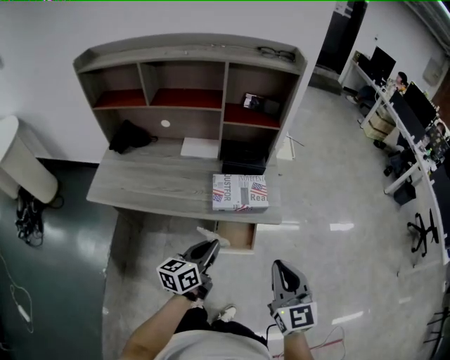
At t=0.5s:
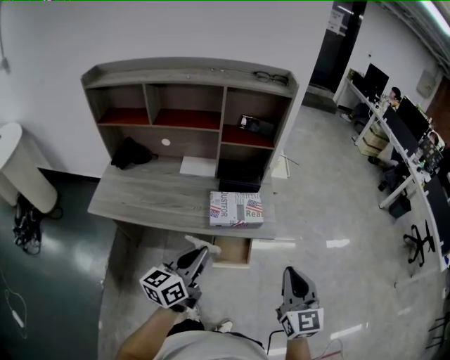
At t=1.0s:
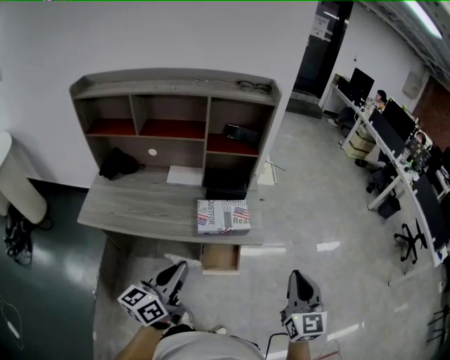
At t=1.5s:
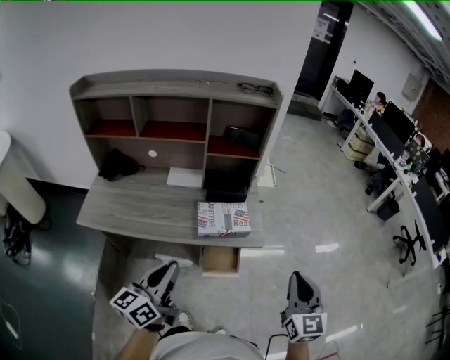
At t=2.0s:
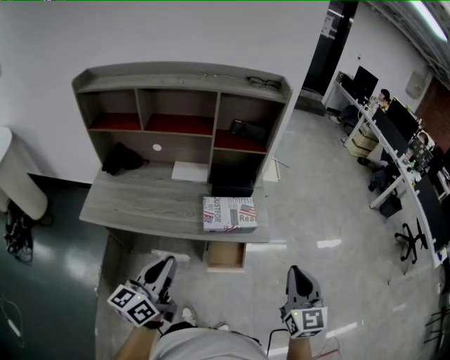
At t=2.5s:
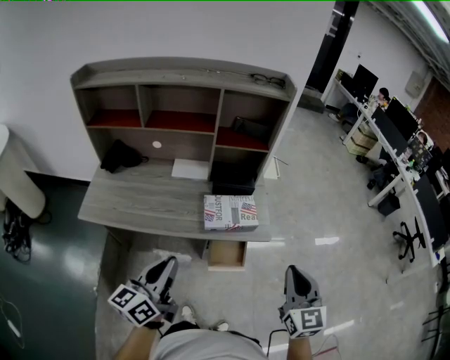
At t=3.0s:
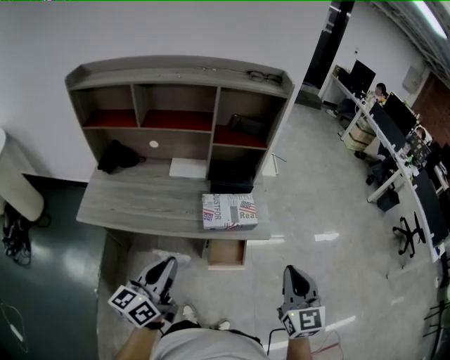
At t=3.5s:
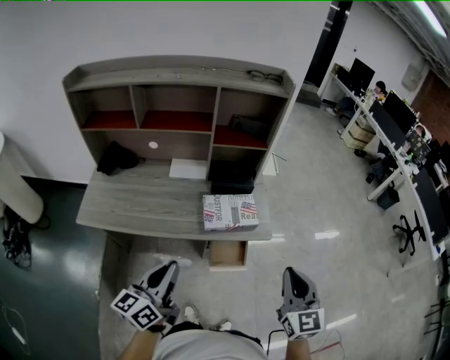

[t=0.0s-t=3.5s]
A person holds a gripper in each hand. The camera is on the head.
t=0.0s to t=2.0s: The right gripper shifts some 5 cm to the right; the left gripper moves upward, to the left and backward, roughly 20 cm.
t=2.0s to t=3.5s: There are only small adjustments of the grippers.

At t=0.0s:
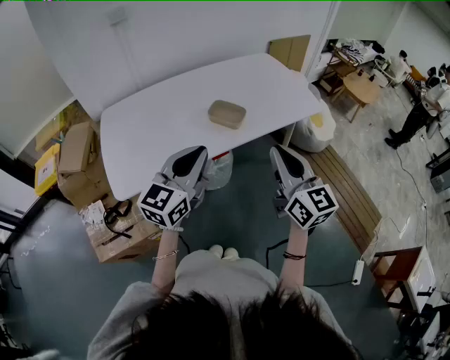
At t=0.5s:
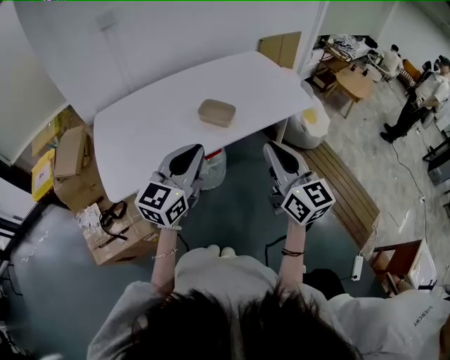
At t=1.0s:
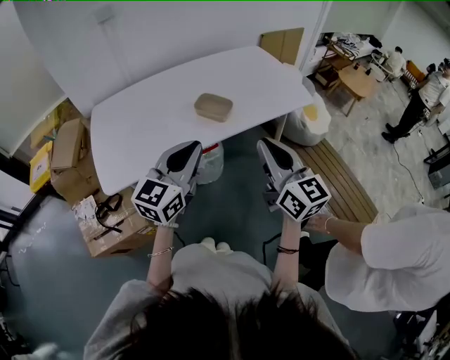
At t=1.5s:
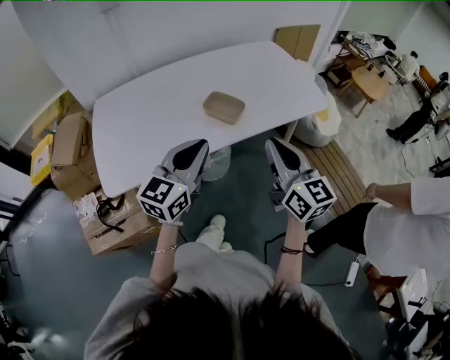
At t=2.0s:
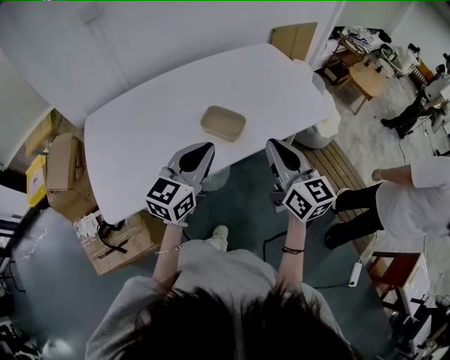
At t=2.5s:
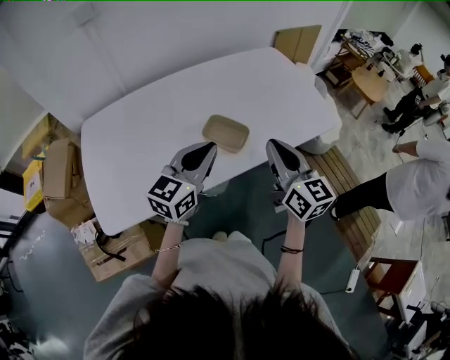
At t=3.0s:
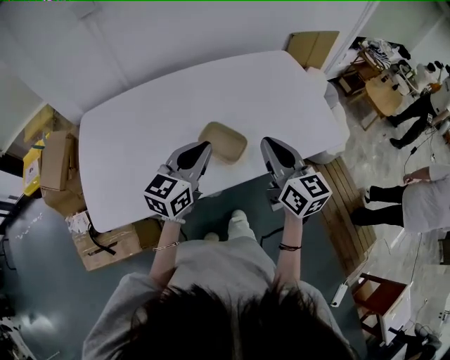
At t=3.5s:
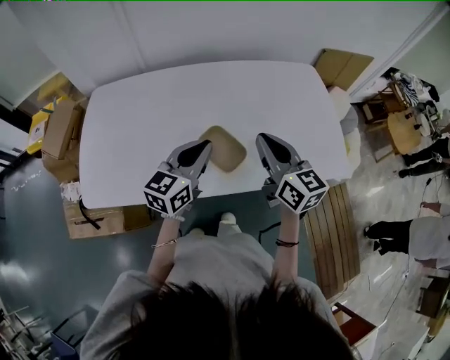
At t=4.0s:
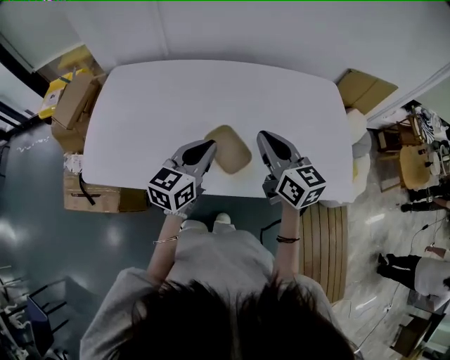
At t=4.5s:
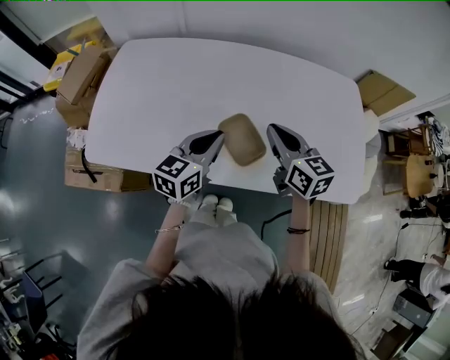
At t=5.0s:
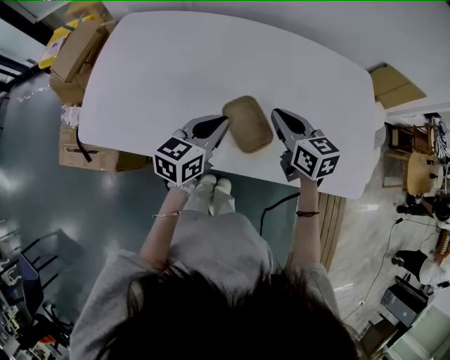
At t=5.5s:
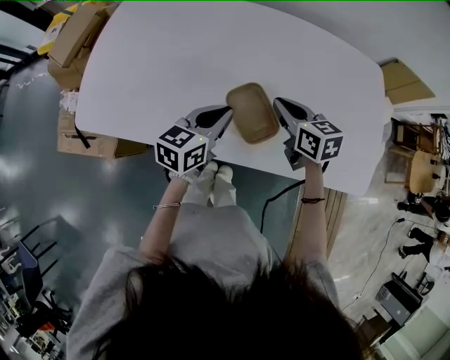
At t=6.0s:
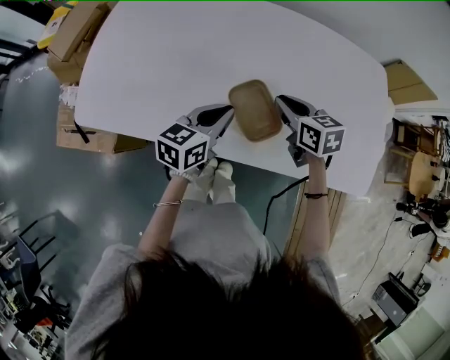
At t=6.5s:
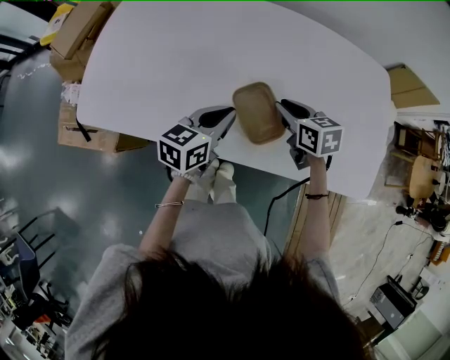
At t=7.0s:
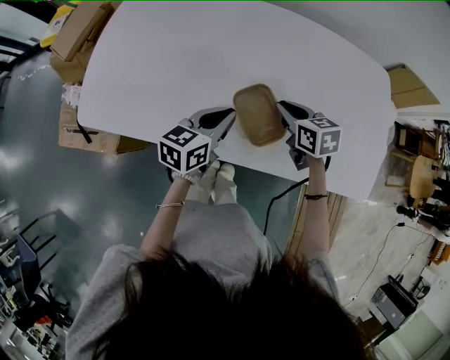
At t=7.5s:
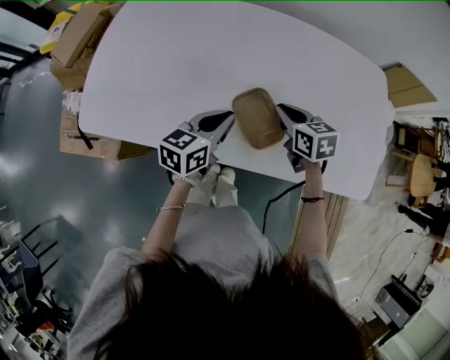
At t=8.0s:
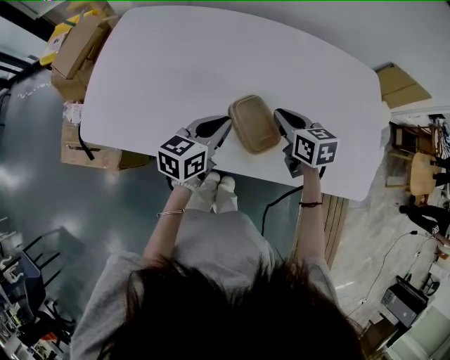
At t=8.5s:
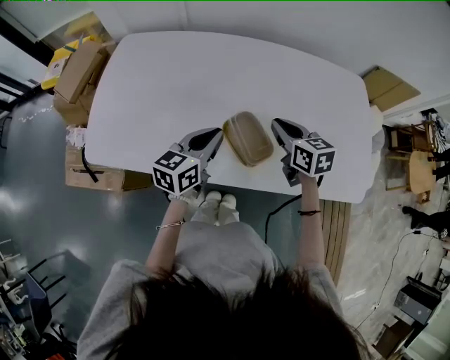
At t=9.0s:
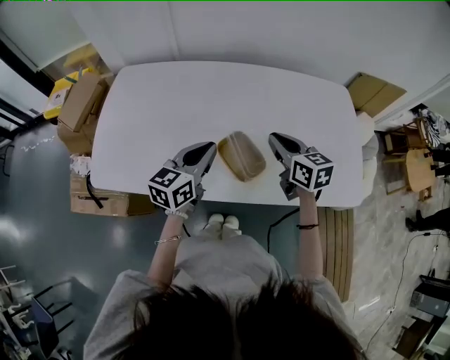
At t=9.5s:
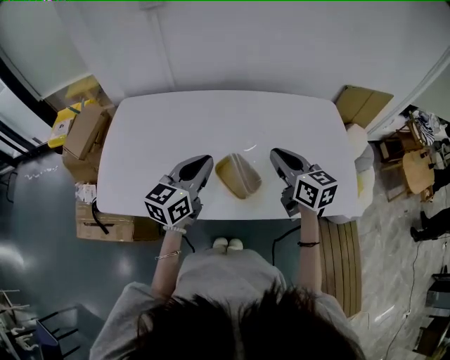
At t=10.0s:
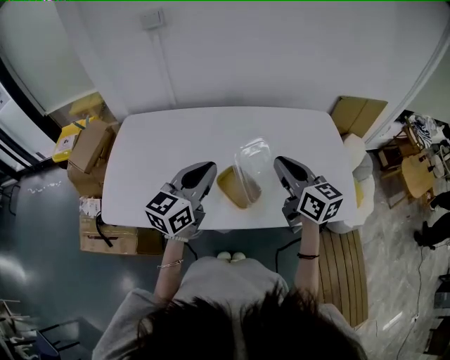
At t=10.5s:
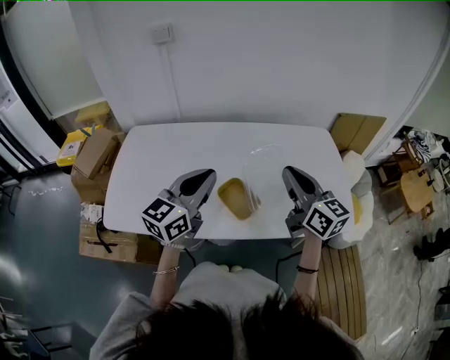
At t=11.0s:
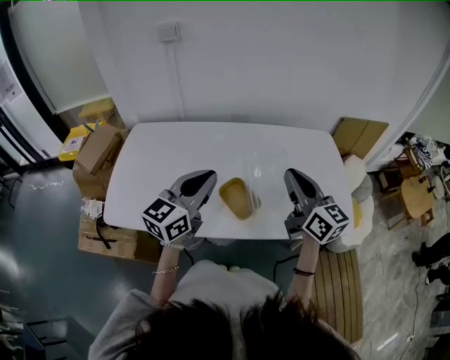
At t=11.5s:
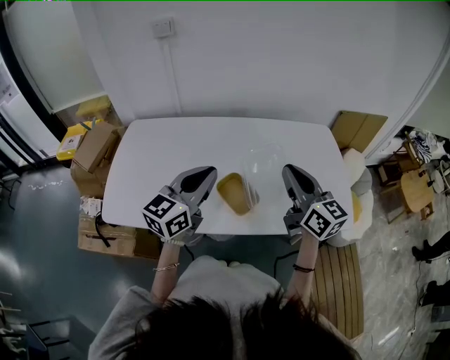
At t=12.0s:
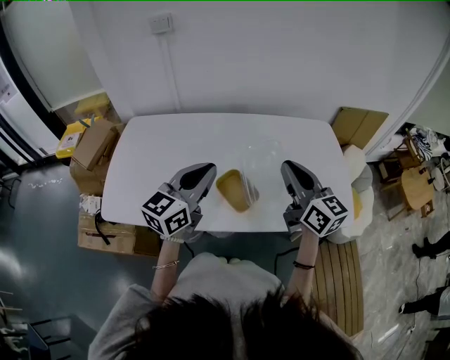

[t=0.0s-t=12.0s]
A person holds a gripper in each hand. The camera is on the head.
t=0.0s to t=2.0s: The two grippers go some 15 cm forward.
t=2.0s to t=4.0s: The left gripper shifts by some 20 cm, and rotates some 30 degrees. The right gripper moves approximately 25 cm, and turns by approximately 30 degrees.
t=4.0s to t=6.0s: The two grippers go approximately 15 cm downward. The right gripper rotates some 30 degrees.
t=6.0s to t=8.0s: The grippers stay close to where they were, moving slightly.
t=8.0s to t=10.0s: The grippers both shift upward by about 20 cm. The right gripper tips its fingers upward by roughly 30 degrees; the left gripper rotates approximately 30 degrees.
t=10.0s to t=12.0s: The grippers make only small movements.

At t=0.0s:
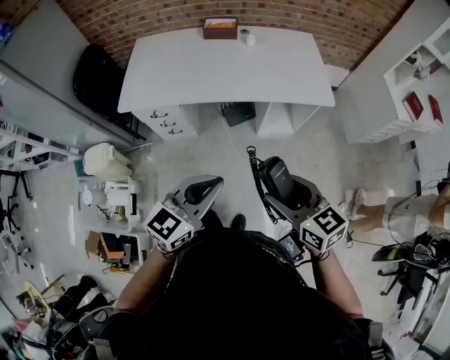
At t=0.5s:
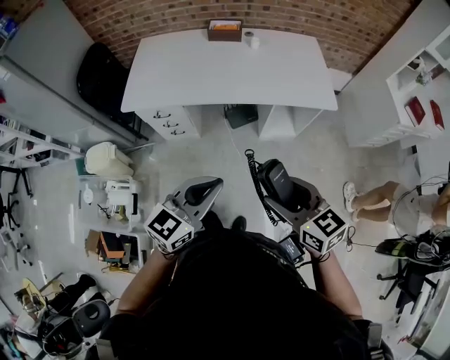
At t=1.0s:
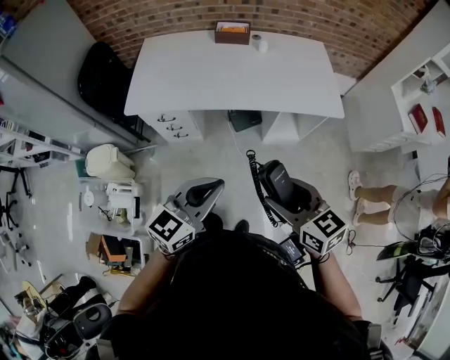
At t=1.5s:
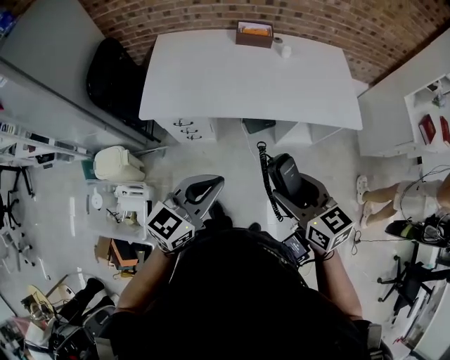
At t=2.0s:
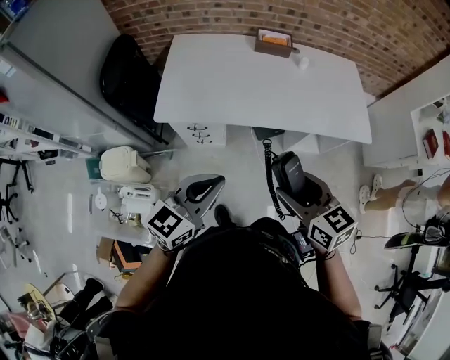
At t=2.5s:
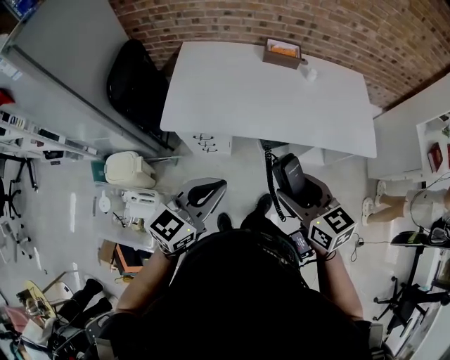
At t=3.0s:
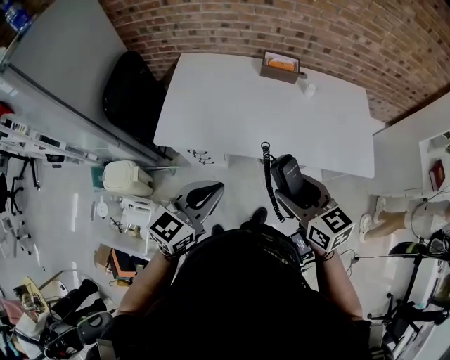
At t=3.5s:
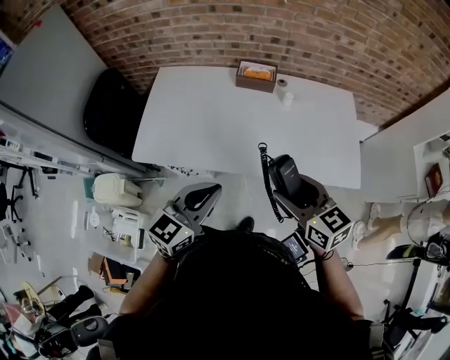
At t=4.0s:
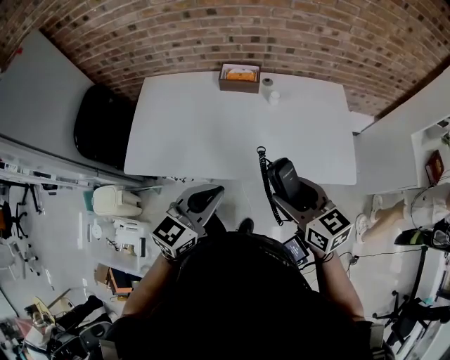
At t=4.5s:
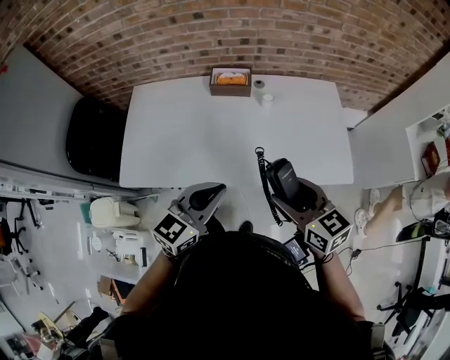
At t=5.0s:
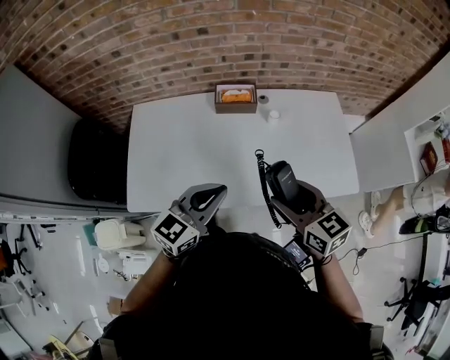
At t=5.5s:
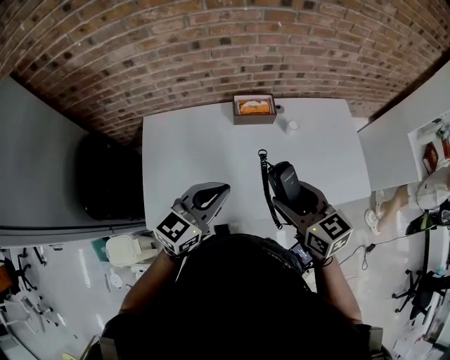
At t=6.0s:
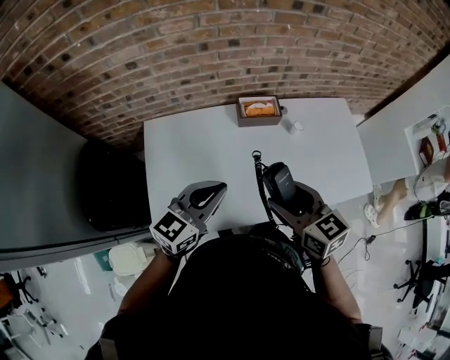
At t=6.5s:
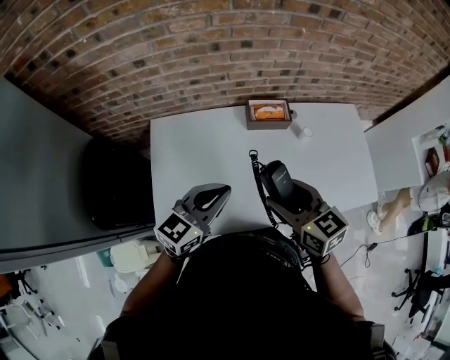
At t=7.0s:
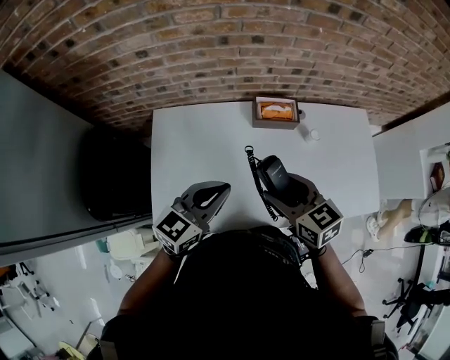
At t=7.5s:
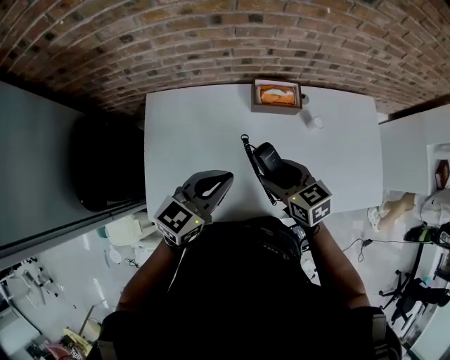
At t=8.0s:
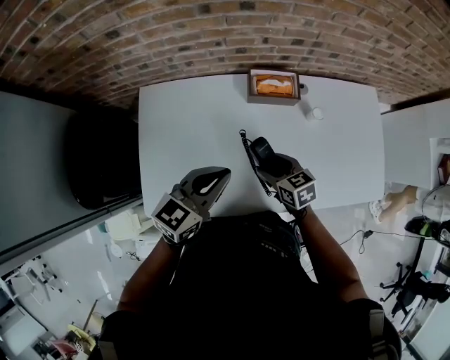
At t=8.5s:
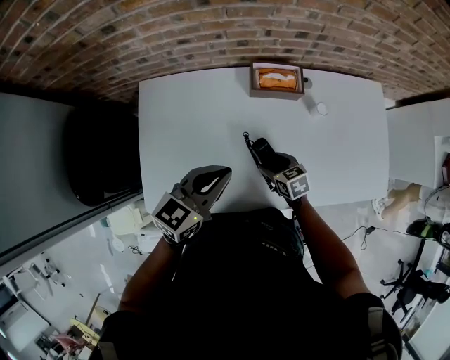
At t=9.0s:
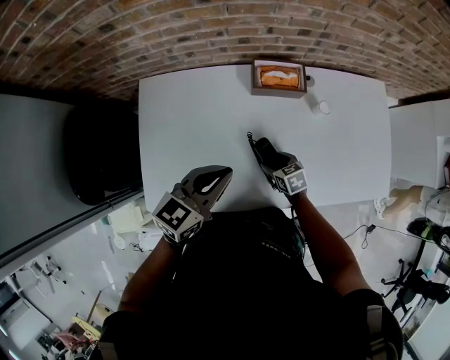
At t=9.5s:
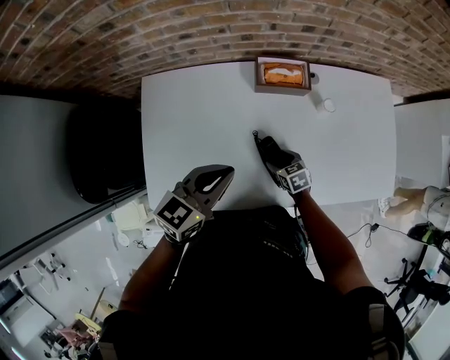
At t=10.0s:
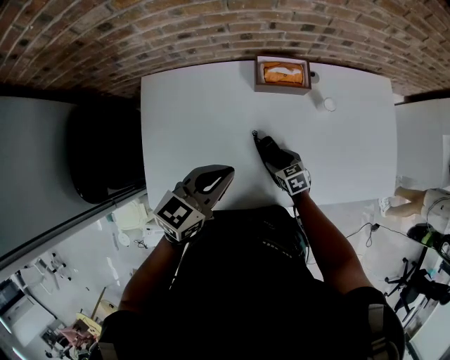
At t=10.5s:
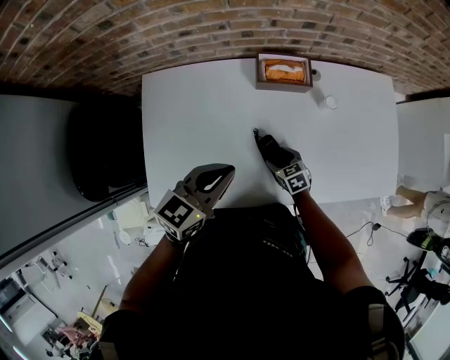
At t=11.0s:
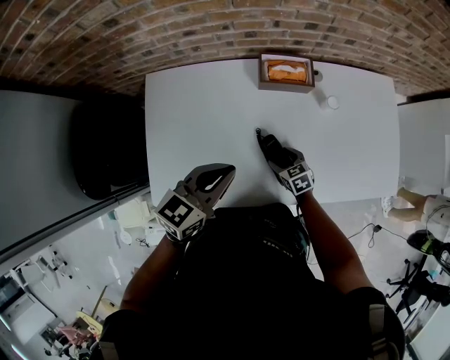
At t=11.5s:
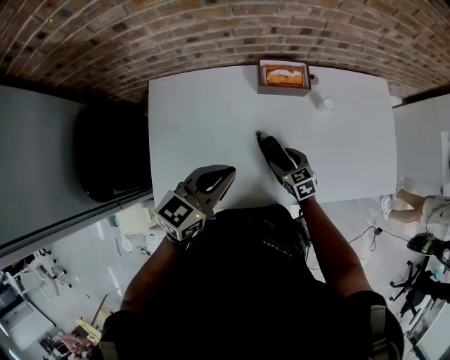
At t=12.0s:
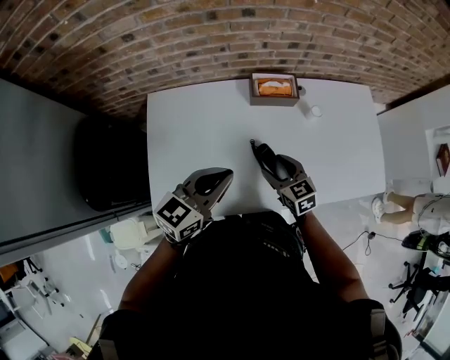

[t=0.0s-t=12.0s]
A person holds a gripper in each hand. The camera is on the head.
t=0.0s to t=2.0s: Both grippers move to the left and forward, some 25 cm.
t=2.0s to t=4.0s: Both grippers move to the right and forward, approximately 30 cm.
t=4.0s to t=6.0s: The two grippers go approximately 30 cm to the left and forward.
t=6.0s to t=8.0s: The right gripper travels downward and forward by about 25 cm, and rotates some 20 degrees. Meanwhile the left gripper goes approximately 10 cm forward and downward.
t=8.0s to t=10.0s: The right gripper travels downward by approximately 15 cm.
t=10.0s to t=12.0s: The left gripper changes place by approximately 5 cm, while the right gripper heads upward, covering approximately 20 cm, and changes its angle by some 20 degrees.
